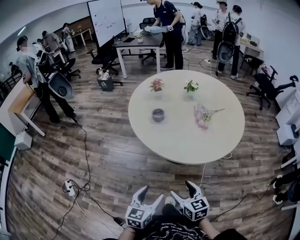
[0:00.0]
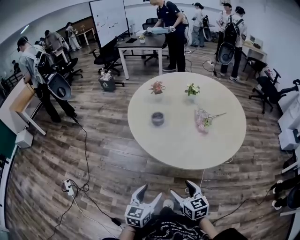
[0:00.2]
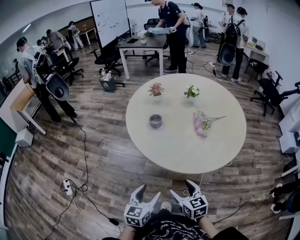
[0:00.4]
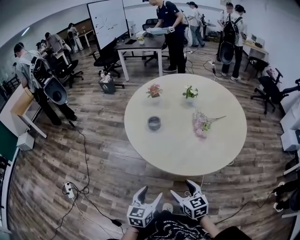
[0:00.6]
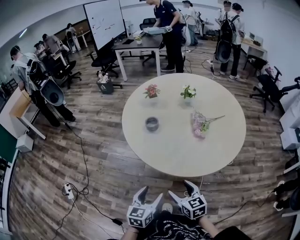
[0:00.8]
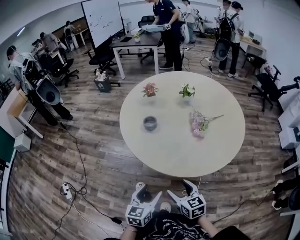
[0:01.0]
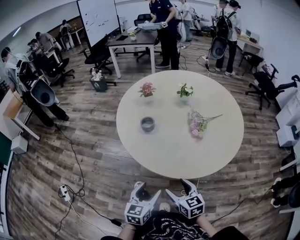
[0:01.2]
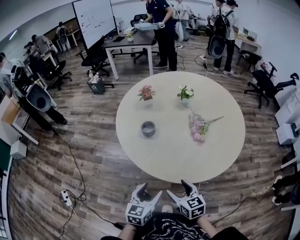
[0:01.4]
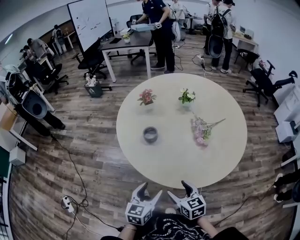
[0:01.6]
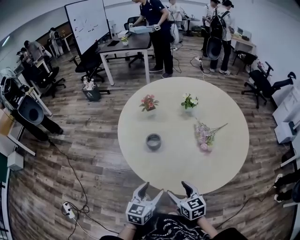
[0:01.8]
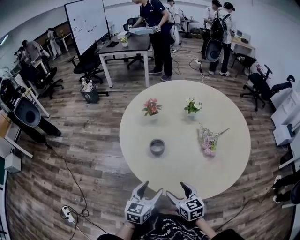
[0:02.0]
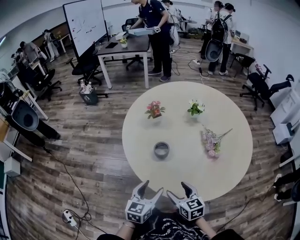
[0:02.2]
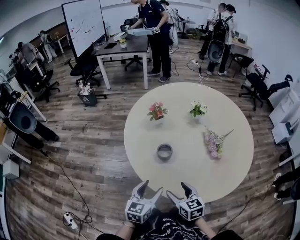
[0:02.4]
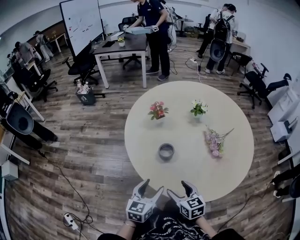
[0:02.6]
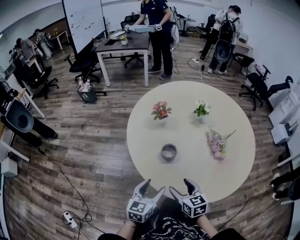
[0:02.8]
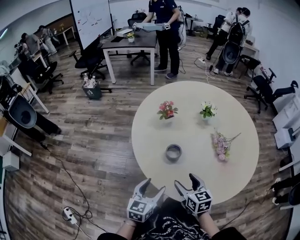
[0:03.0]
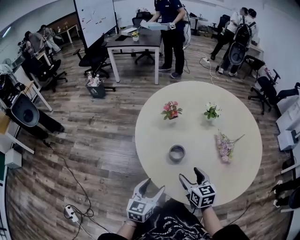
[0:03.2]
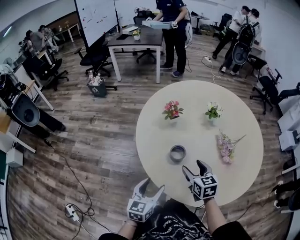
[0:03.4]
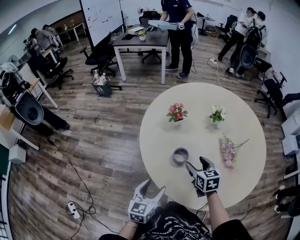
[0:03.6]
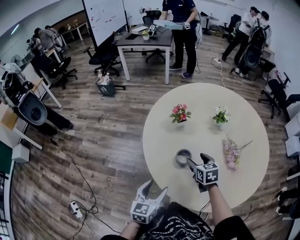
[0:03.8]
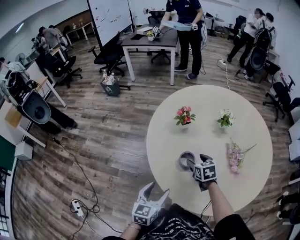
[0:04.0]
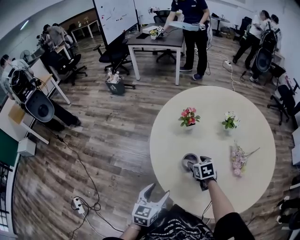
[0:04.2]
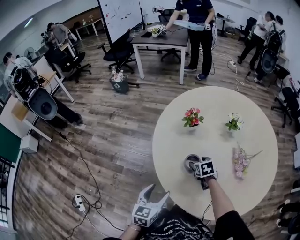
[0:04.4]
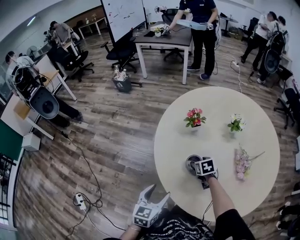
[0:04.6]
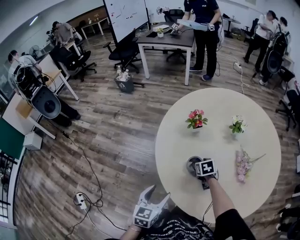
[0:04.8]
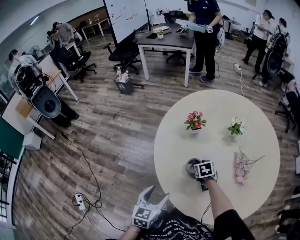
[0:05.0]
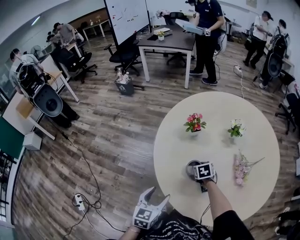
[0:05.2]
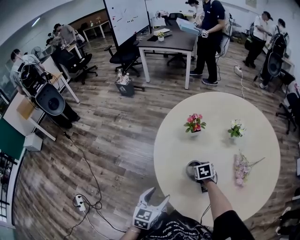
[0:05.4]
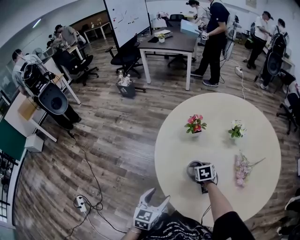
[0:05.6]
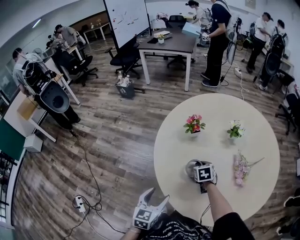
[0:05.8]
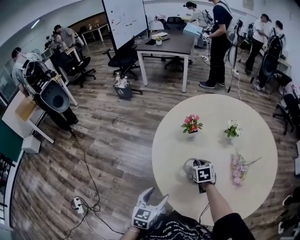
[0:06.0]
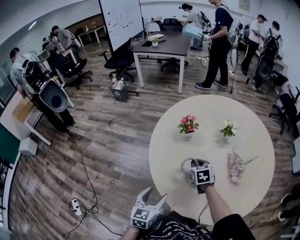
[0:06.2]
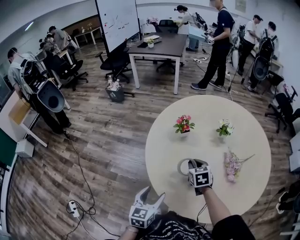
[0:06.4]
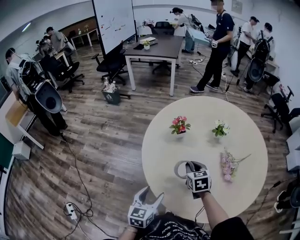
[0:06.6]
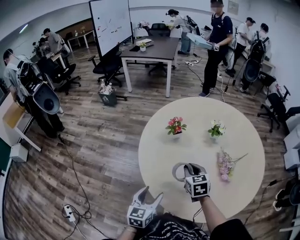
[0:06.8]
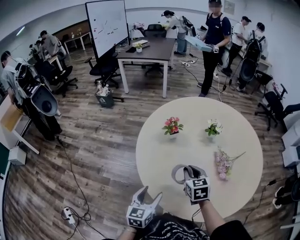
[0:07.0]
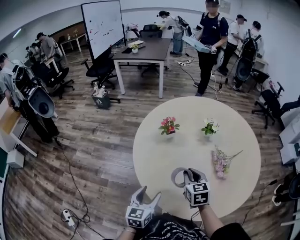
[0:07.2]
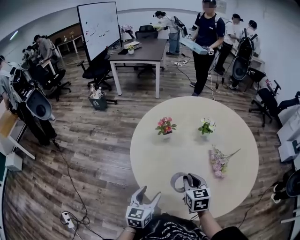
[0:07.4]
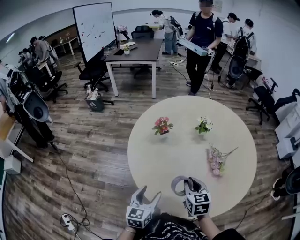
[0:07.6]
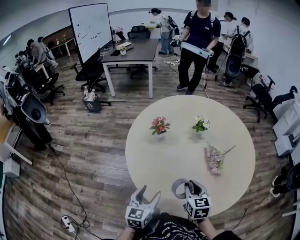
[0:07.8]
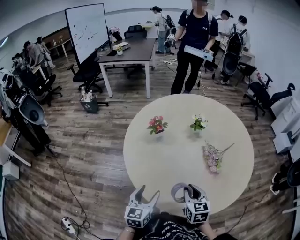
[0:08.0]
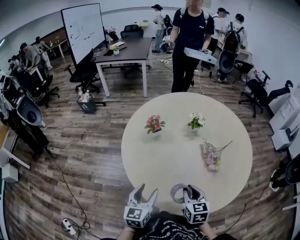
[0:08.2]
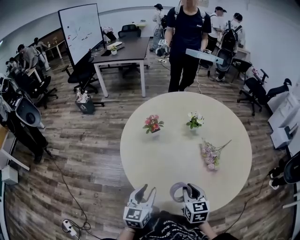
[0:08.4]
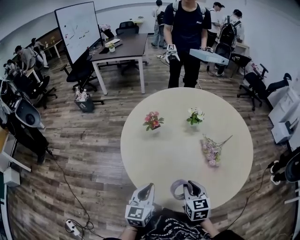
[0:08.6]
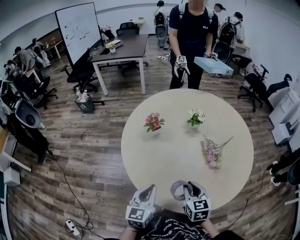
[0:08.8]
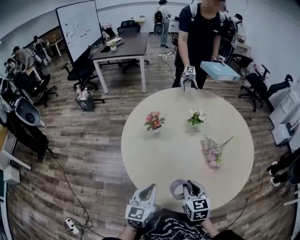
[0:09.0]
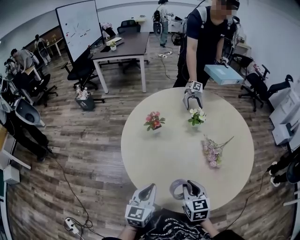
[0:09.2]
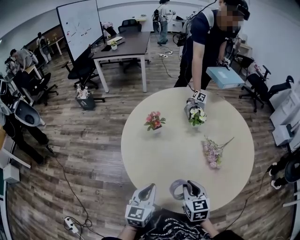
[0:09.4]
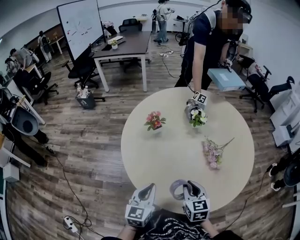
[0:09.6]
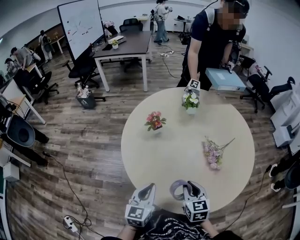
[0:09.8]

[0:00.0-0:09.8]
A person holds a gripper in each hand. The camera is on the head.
0:00.0 to 0:01.4: Both grippers move forward, approximately 15 cm.
0:01.4 to 0:02.8: Both grippers move forward and to the left, about 25 cm.
0:02.8 to 0:04.2: The right gripper heads forward, covering approximately 20 cm, and turns by about 20 degrees, while the left gripper shifts by some 5 cm.
0:04.2 to 0:05.6: The right gripper closes its fingers.
0:05.6 to 0:07.0: The right gripper goes approximately 15 cm upward and backward, and swivels approximately 20 degrees.
0:07.0 to 0:08.4: The right gripper travels backward and to the right by about 15 cm. The left gripper closes.
0:08.4 to 0:09.8: The left gripper closes up.

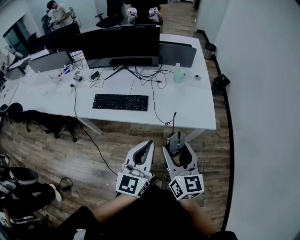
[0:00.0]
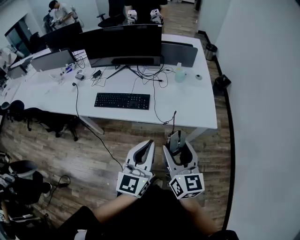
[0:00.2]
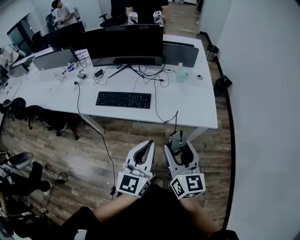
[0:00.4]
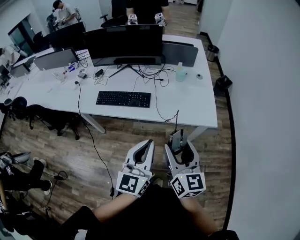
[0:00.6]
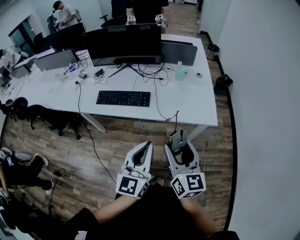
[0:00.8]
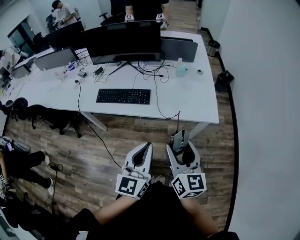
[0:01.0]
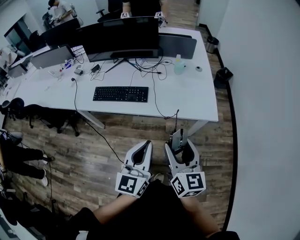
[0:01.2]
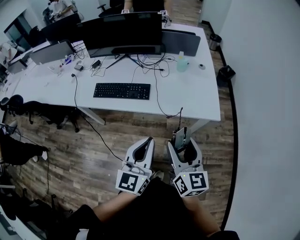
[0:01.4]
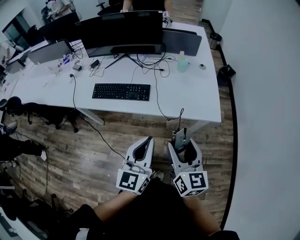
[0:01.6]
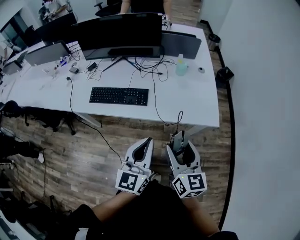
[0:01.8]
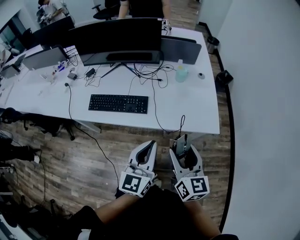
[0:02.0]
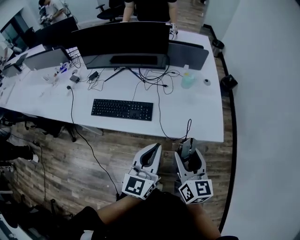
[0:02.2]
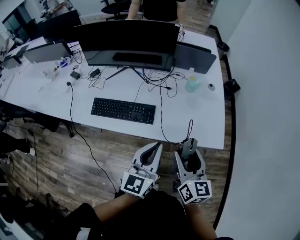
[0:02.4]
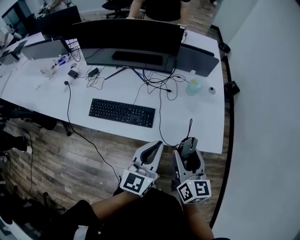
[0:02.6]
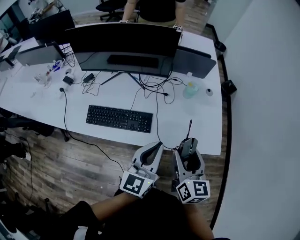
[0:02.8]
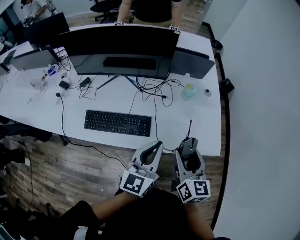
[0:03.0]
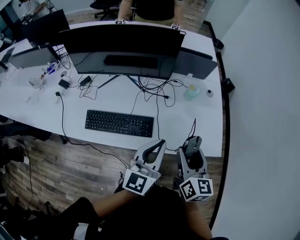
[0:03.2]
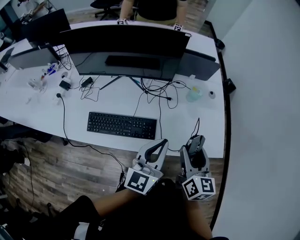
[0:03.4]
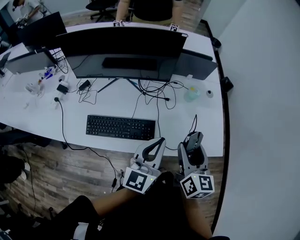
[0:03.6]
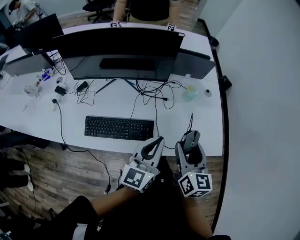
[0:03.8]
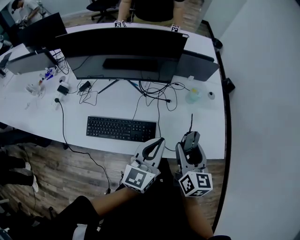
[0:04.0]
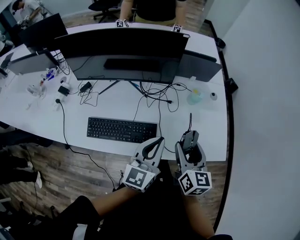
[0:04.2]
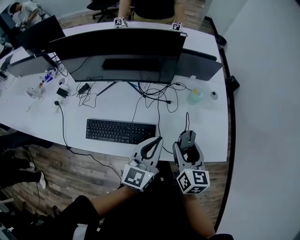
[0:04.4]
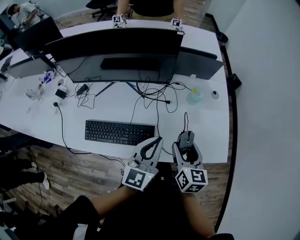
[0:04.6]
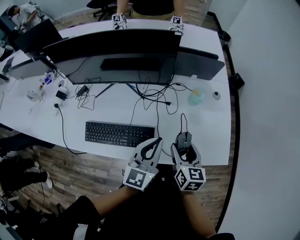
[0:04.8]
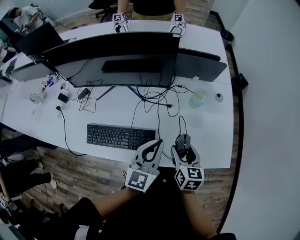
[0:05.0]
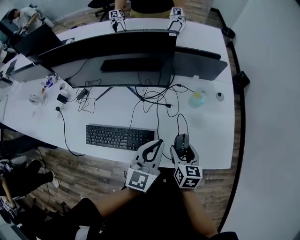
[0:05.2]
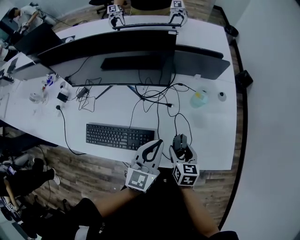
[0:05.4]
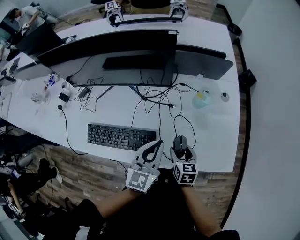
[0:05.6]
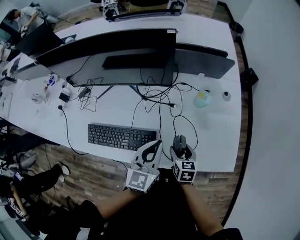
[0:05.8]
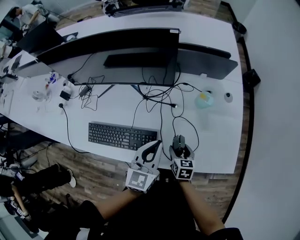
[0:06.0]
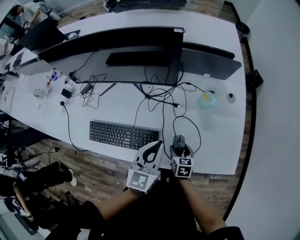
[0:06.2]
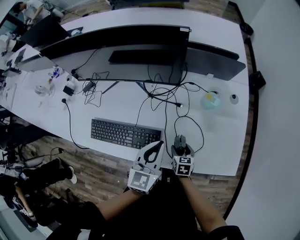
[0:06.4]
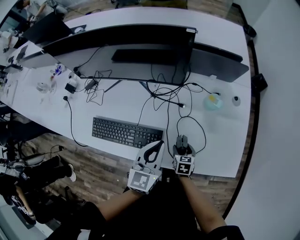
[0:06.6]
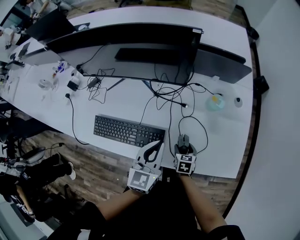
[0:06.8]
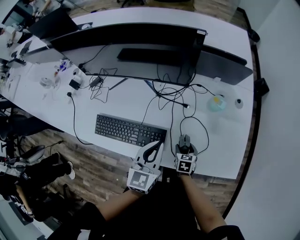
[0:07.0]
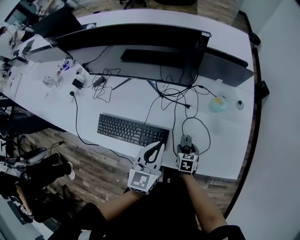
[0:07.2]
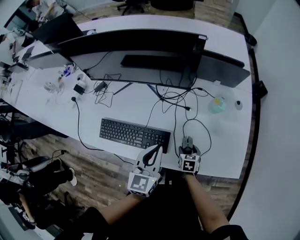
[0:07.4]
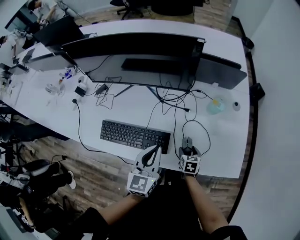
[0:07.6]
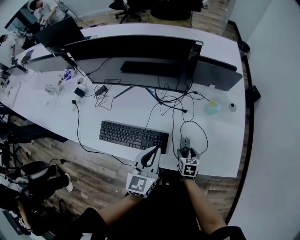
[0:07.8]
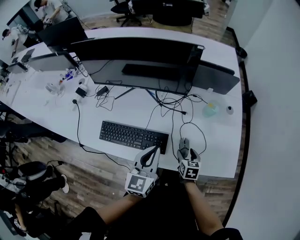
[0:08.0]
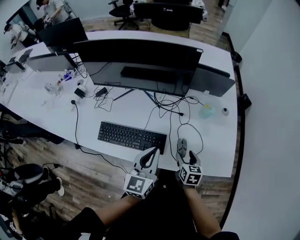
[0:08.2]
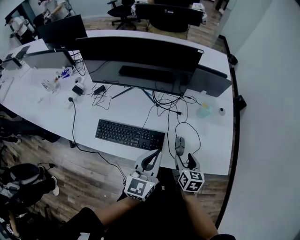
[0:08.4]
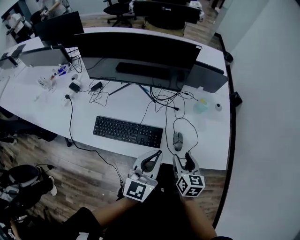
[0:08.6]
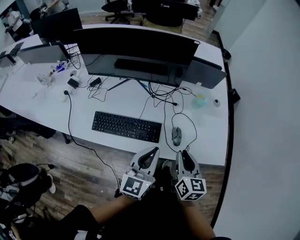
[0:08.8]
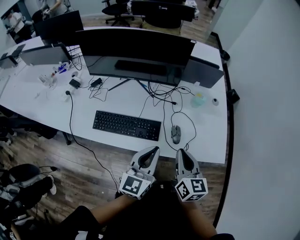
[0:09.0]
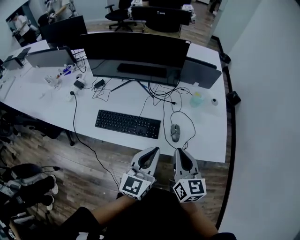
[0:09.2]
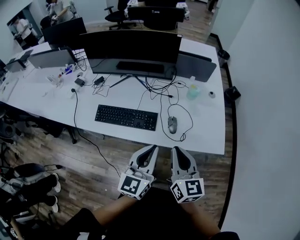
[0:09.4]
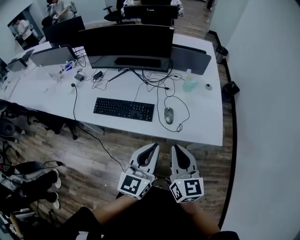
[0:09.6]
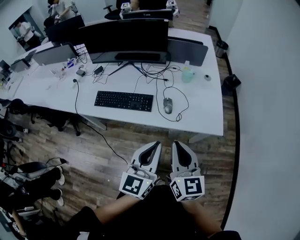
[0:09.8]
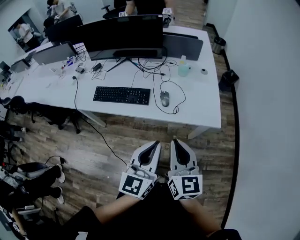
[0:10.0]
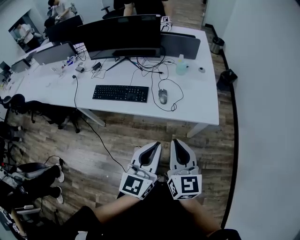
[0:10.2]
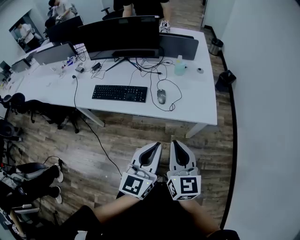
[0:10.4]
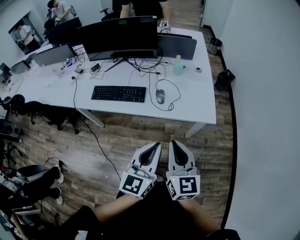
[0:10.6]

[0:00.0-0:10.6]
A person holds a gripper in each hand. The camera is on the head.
0:00.0 to 0:01.6: The grippers make only small movements.
0:01.6 to 0:03.0: The two grippers go approximately 25 cm forward.
0:03.0 to 0:04.6: The right gripper shifts approximately 15 cm forward and downward. Meanwhile the left gripper heads forward, covering some 10 cm.
0:04.6 to 0:06.0: The left gripper travels downward and forward by about 10 cm, while the right gripper moves downward, roughly 20 cm, and swivels some 20 degrees.
0:06.0 to 0:07.6: The right gripper shifts by approximately 5 cm. The left gripper heads to the left, covering about 10 cm.
0:07.6 to 0:09.0: The right gripper travels upward and backward by roughly 35 cm, tips its fingers upward by about 40 degrees, and closes its fingers, while the left gripper travels backward and upward by approximately 15 cm.
0:09.0 to 0:10.6: The two grippers go about 30 cm backward and to the right.

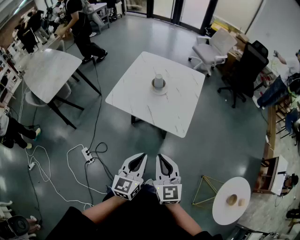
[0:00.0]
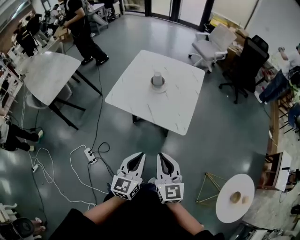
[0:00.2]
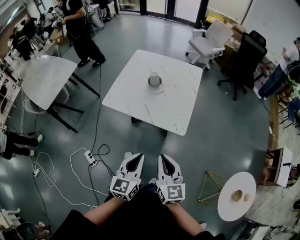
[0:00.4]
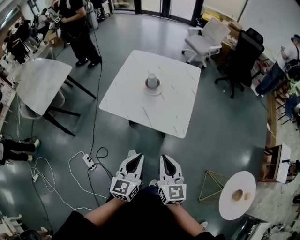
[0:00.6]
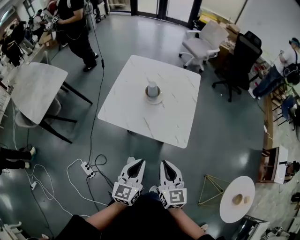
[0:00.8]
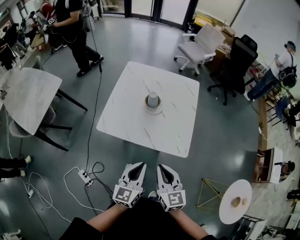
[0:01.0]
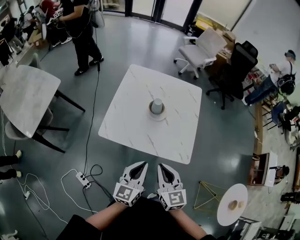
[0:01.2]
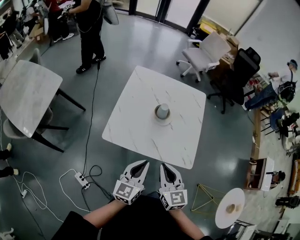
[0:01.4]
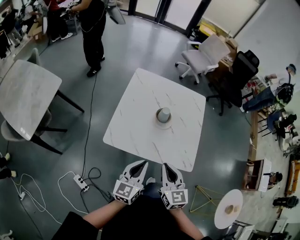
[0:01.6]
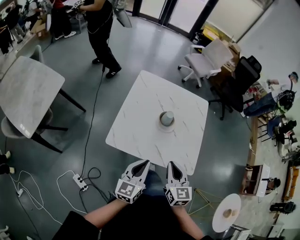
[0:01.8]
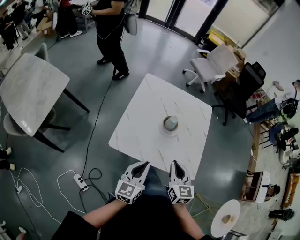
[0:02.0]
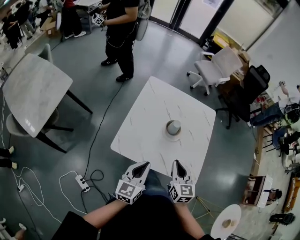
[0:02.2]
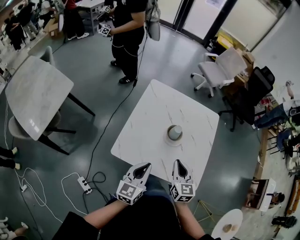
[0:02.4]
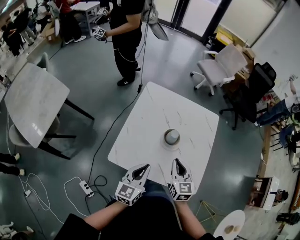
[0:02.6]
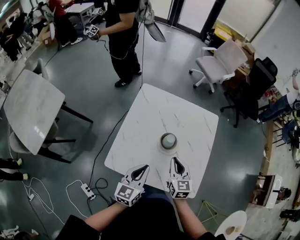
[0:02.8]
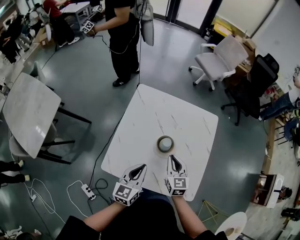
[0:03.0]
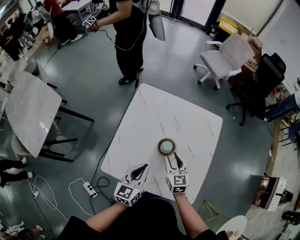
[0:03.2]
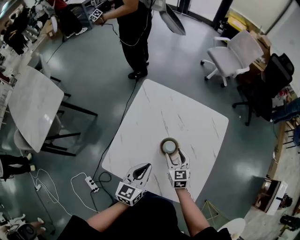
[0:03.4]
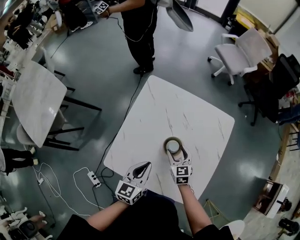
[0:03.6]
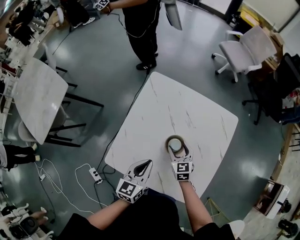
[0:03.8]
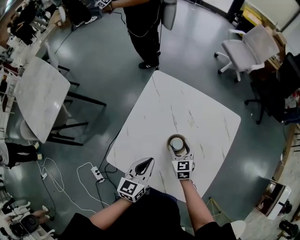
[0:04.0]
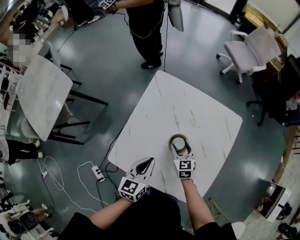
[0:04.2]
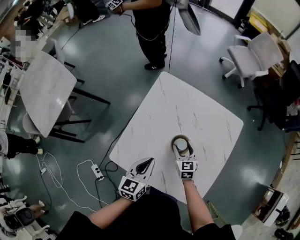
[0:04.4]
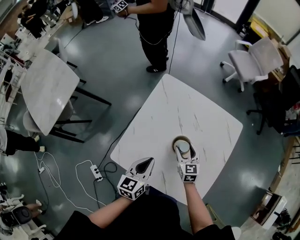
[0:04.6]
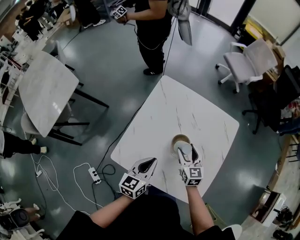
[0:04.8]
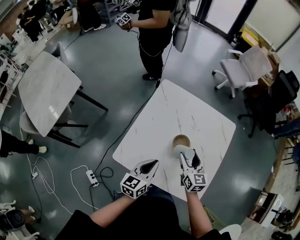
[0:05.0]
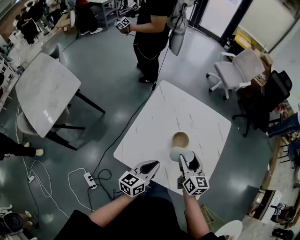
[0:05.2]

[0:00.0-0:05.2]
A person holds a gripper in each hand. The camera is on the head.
0:00.0 to 0:01.8: Both grippers travel together forward and to the left, approximately 35 cm.
0:01.8 to 0:03.4: The right gripper goes some 35 cm forward and downward, and opens, while the left gripper moves forward, some 25 cm.
0:03.4 to 0:05.2: The right gripper travels upward and backward by approximately 15 cm, and swivels approximately 20 degrees. The left gripper shifts roughly 10 cm backward.
